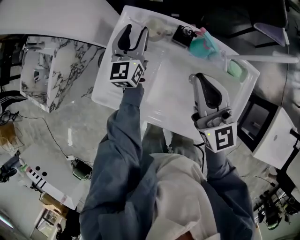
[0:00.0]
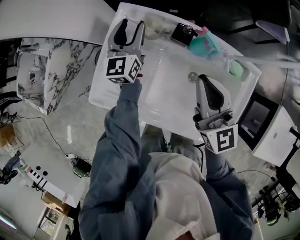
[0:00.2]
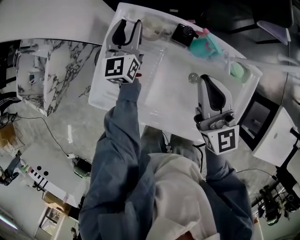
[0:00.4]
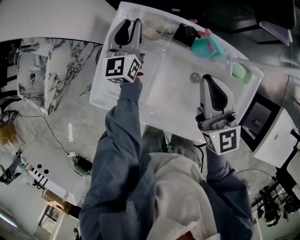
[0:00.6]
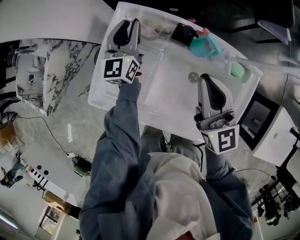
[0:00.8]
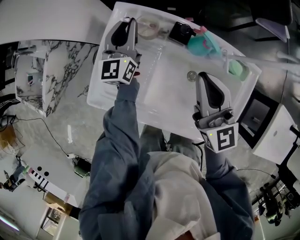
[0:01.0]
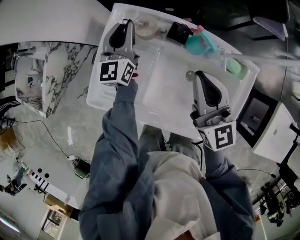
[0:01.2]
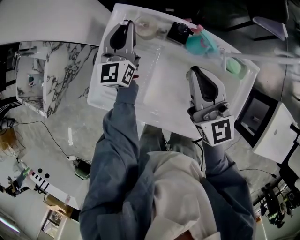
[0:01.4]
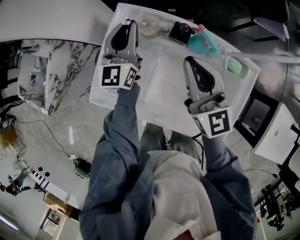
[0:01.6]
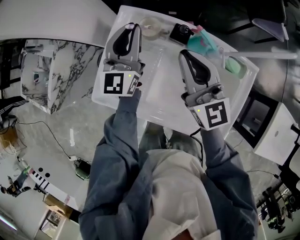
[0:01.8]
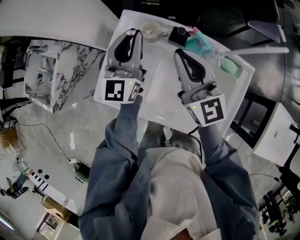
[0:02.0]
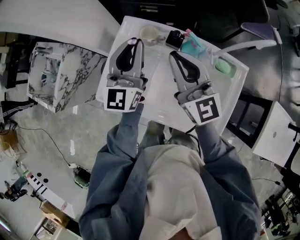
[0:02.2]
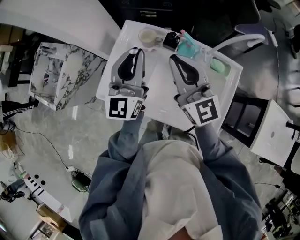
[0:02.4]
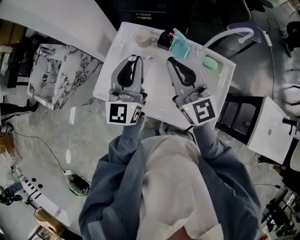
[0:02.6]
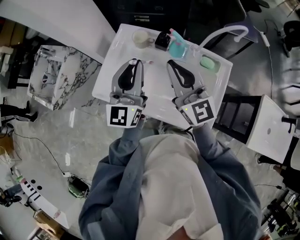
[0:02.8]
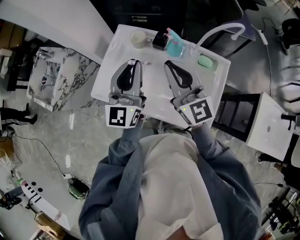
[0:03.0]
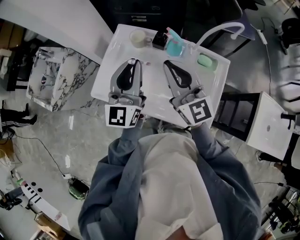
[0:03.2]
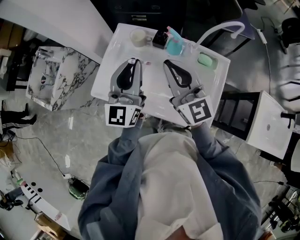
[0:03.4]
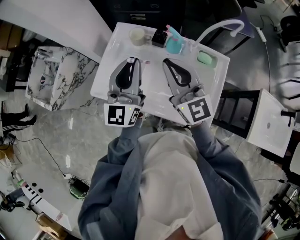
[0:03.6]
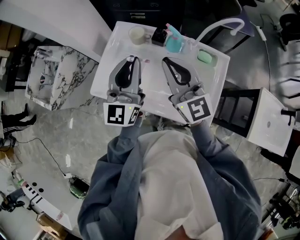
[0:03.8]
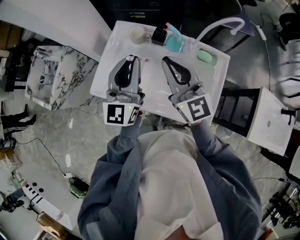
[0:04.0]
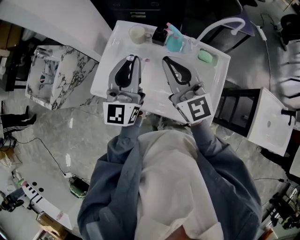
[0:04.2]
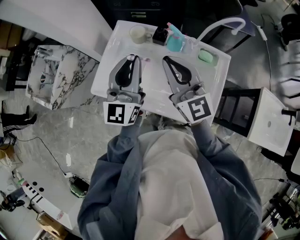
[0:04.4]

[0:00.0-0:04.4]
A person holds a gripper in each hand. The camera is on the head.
0:00.0 to 0:01.4: The left gripper closes its fingers.
0:01.4 to 0:03.0: The right gripper is displaced upward and backward by about 15 cm; the left gripper is displaced backward and upward by some 30 cm.
0:03.0 to 0:04.4: The two grippers keep their place.

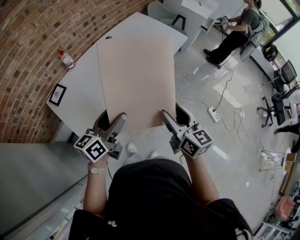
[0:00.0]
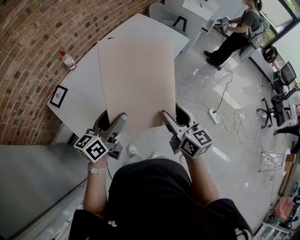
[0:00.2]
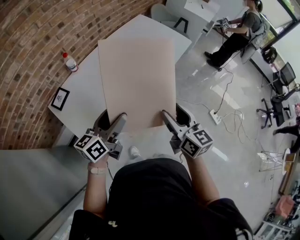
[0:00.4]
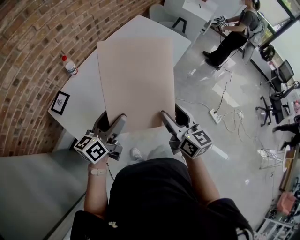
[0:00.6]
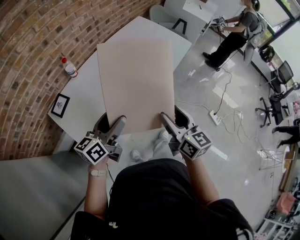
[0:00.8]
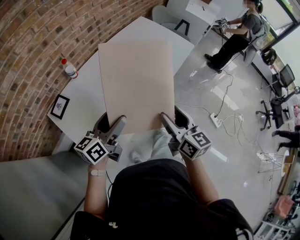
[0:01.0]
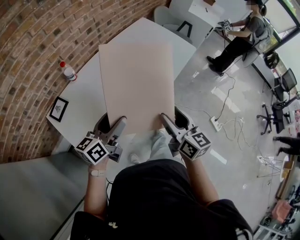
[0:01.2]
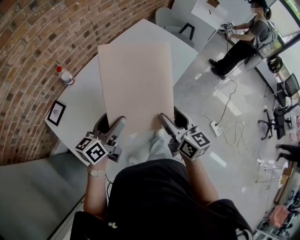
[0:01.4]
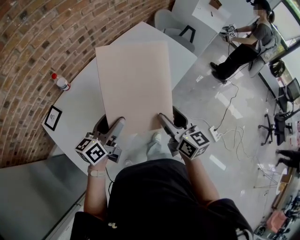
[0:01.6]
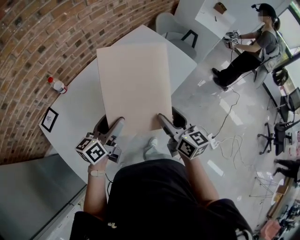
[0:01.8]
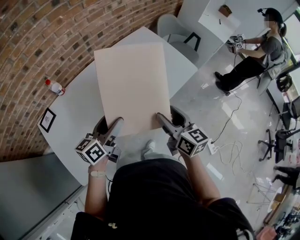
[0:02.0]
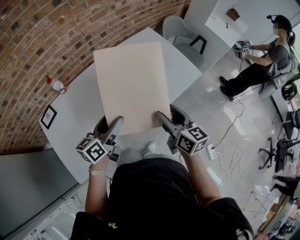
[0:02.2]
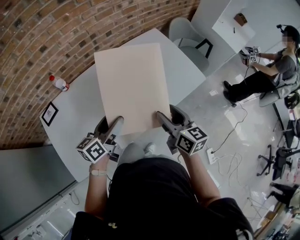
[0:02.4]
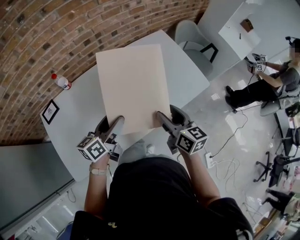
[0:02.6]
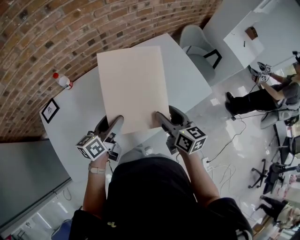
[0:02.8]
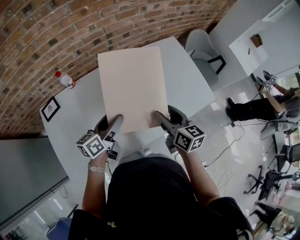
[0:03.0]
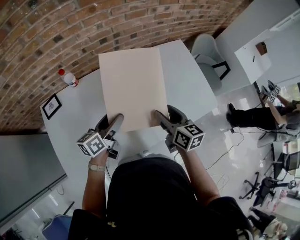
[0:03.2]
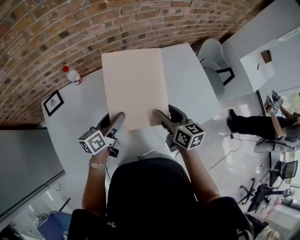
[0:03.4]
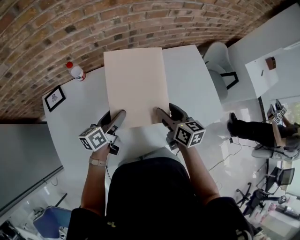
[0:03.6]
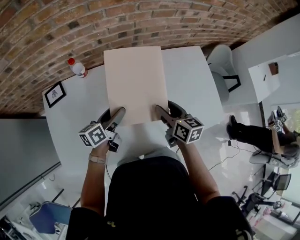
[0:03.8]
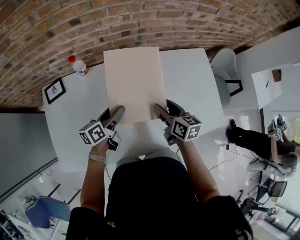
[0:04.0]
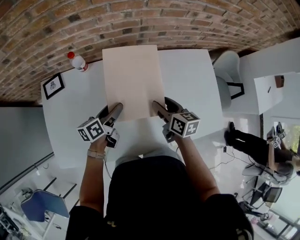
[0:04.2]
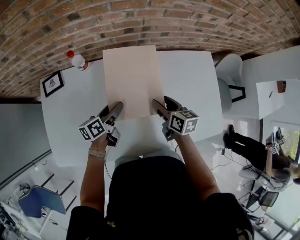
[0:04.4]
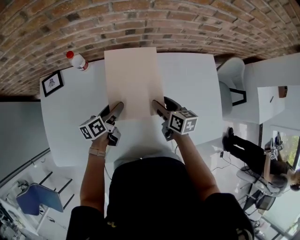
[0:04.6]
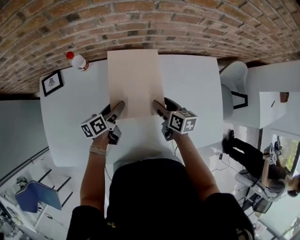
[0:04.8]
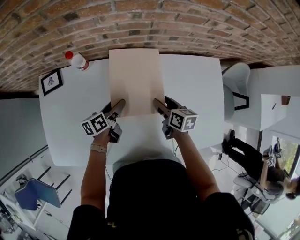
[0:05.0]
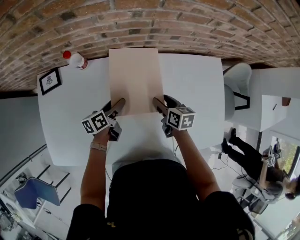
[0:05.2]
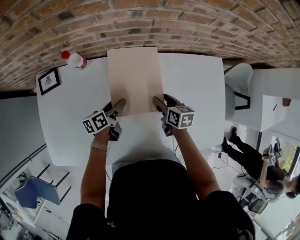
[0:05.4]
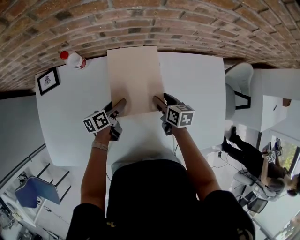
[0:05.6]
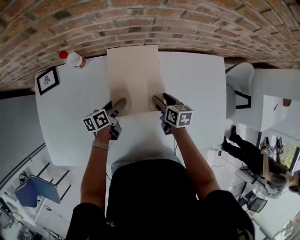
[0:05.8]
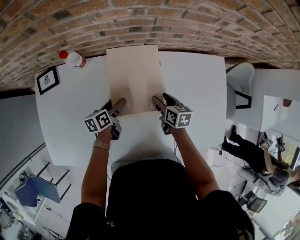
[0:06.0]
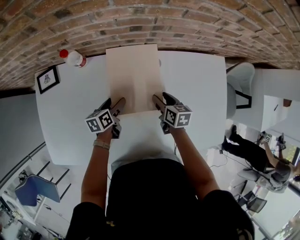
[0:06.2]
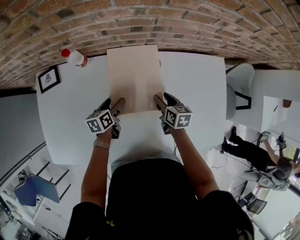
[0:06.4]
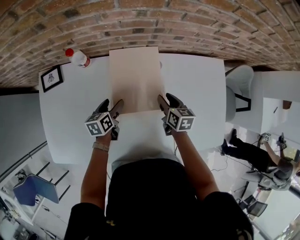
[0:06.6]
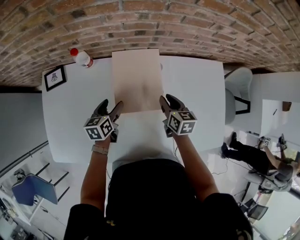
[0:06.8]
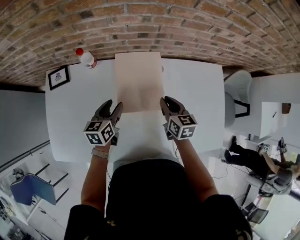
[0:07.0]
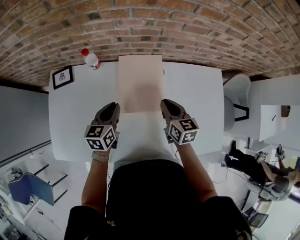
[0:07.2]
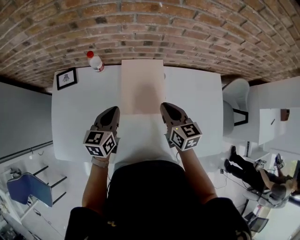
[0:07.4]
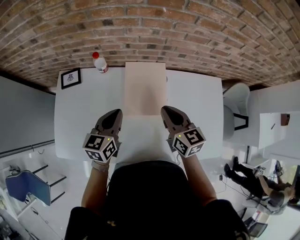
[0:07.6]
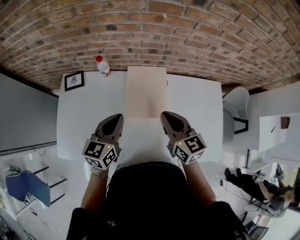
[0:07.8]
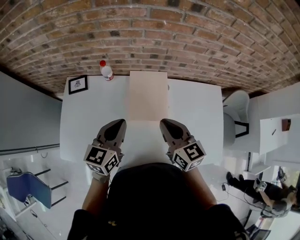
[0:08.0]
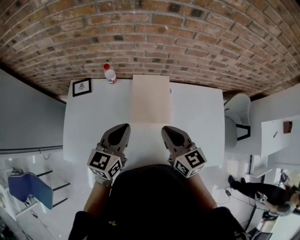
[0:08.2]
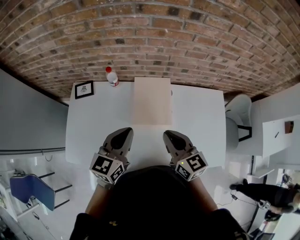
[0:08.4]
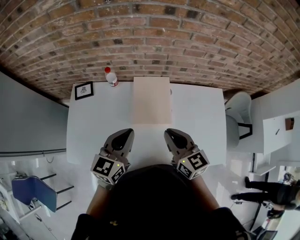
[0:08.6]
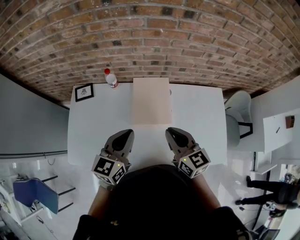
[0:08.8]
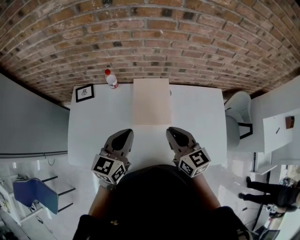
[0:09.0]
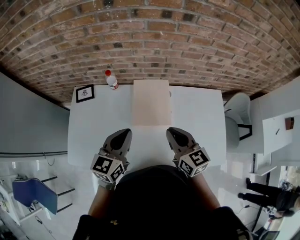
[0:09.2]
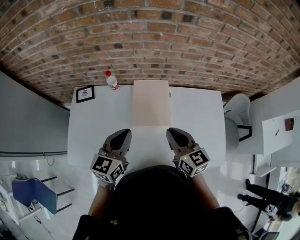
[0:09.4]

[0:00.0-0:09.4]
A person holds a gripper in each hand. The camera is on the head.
0:00.0 to 0:01.6: The two grippers go some 20 cm forward.
0:01.6 to 0:03.2: The left gripper changes place by some 20 cm, and changes its angle by approximately 30 degrees; the right gripper shifts by roughly 25 cm, and turns by some 30 degrees.
0:03.2 to 0:04.8: The left gripper goes roughly 20 cm downward and forward, and changes its angle by roughly 30 degrees. Meanwhile the right gripper is displaced forward and downward by approximately 20 cm, and rotates about 20 degrees.
0:04.8 to 0:06.2: Both grippers move downward, some 10 cm.
0:06.2 to 0:07.8: Both grippers travel together upward, about 30 cm. The left gripper rotates roughly 40 degrees, and closes its fingers. Meanwhile the right gripper turns by roughly 40 degrees, and closes up.
0:07.8 to 0:09.4: The left gripper travels upward and backward by roughly 10 cm. Meanwhile the right gripper is displaced backward by about 5 cm.

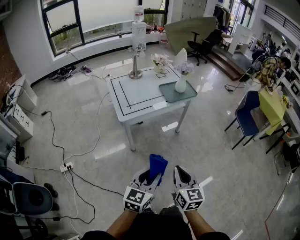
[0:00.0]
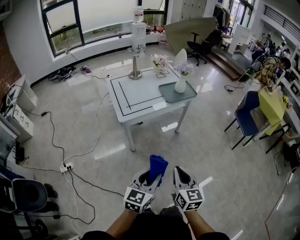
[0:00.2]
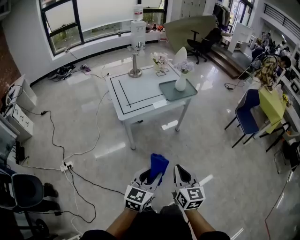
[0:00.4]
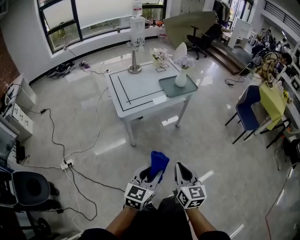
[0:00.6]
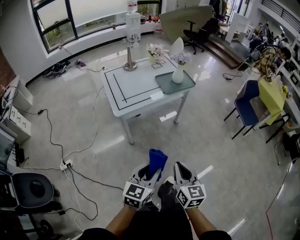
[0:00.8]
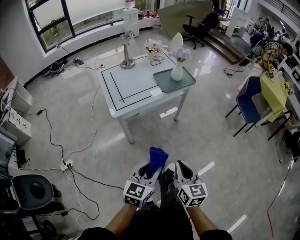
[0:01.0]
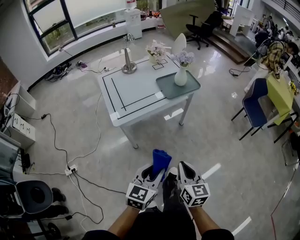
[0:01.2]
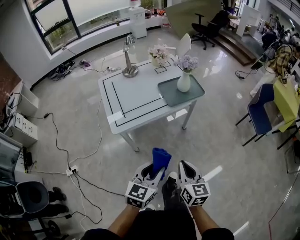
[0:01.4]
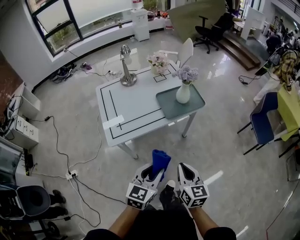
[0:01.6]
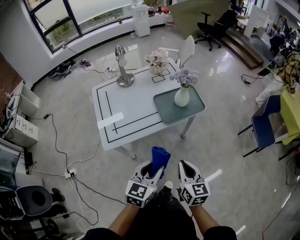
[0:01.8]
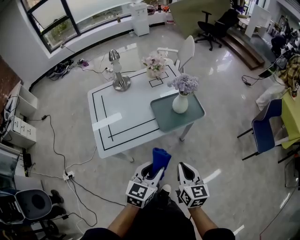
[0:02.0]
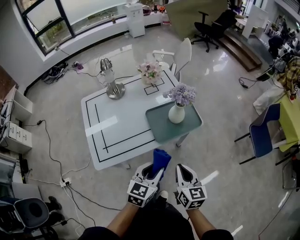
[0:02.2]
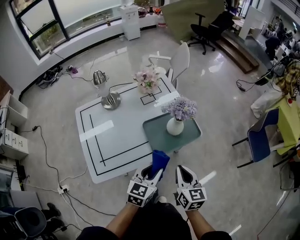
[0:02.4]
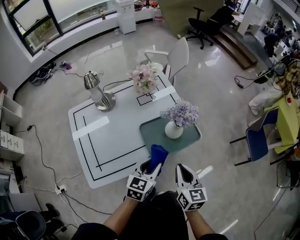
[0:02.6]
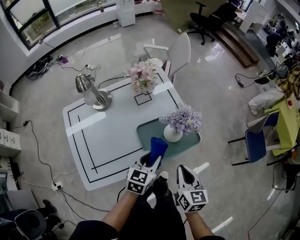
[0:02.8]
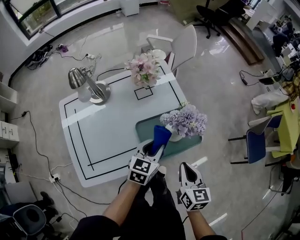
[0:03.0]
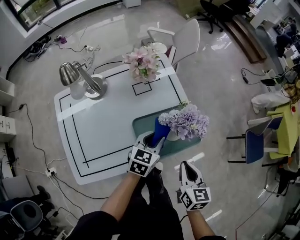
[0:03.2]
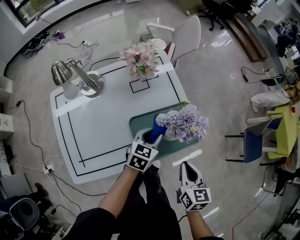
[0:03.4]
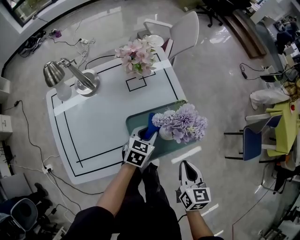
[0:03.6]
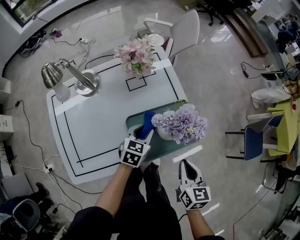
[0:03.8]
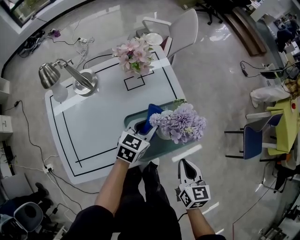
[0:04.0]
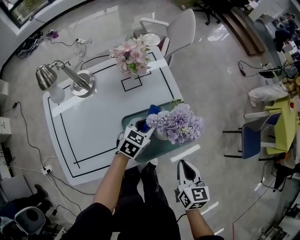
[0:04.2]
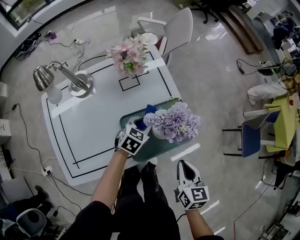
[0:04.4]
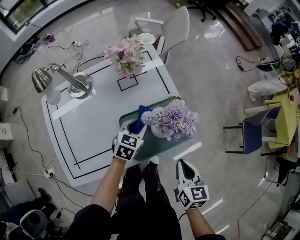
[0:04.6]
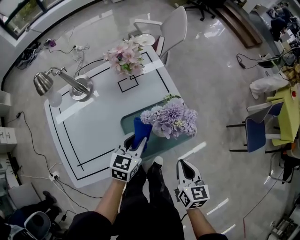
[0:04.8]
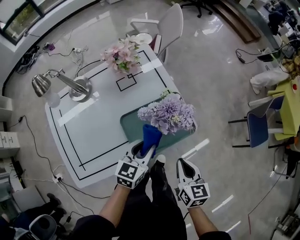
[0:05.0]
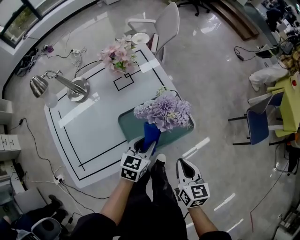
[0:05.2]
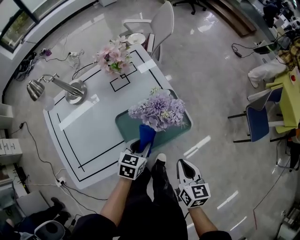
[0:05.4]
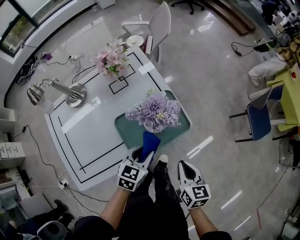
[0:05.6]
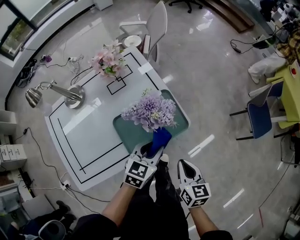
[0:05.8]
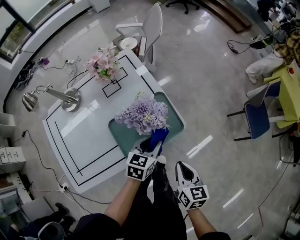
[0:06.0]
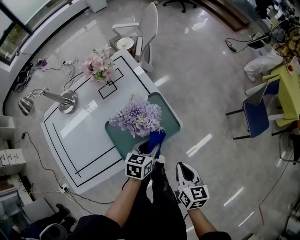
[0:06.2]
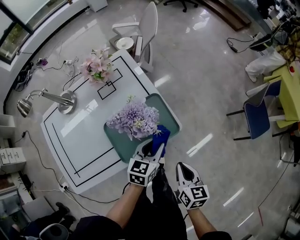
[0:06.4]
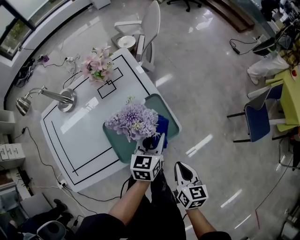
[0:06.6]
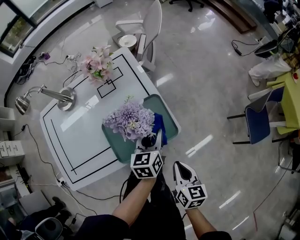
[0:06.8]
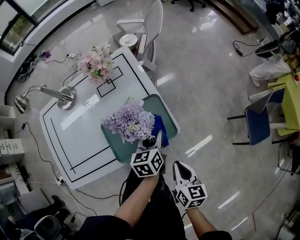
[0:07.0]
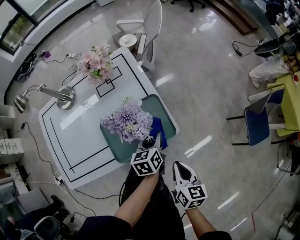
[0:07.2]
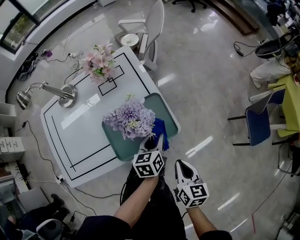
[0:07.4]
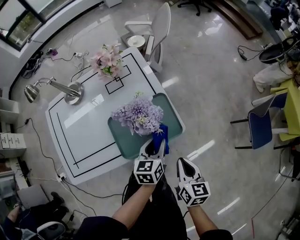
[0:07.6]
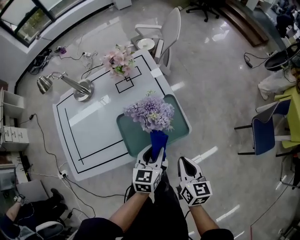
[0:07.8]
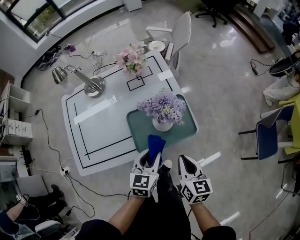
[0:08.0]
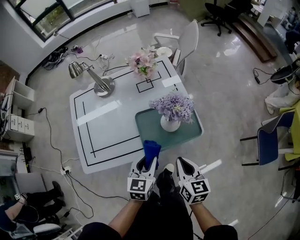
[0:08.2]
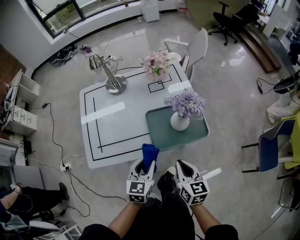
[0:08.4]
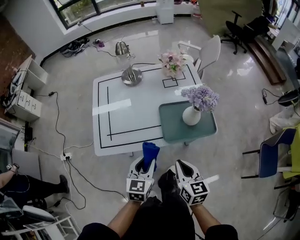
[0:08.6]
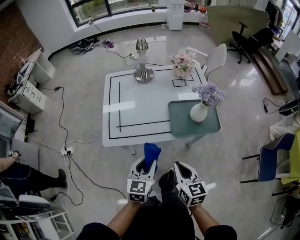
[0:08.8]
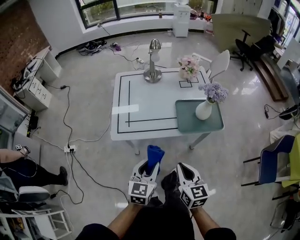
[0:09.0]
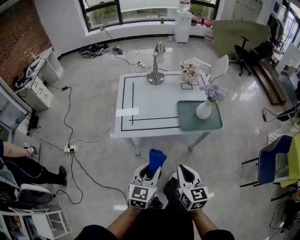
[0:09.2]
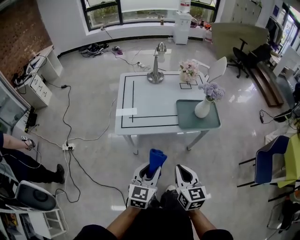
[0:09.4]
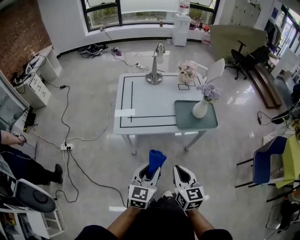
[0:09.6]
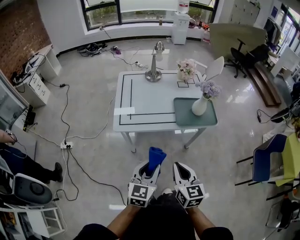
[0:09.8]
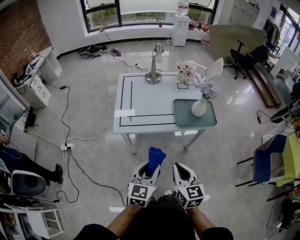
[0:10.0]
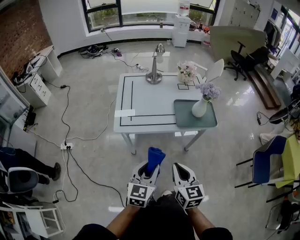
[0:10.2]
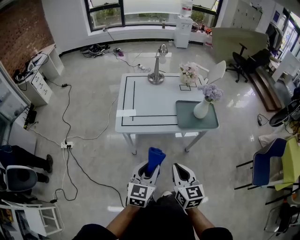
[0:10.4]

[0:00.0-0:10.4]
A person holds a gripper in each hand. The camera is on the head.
0:00.0 to 0:01.4: The two grippers go some 20 cm forward.
0:01.4 to 0:03.0: The two grippers travel together, forward, some 50 cm.
0:03.0 to 0:04.4: The left gripper goes up and down, about 10 cm each way, reversing 2 times, and swivels some 20 degrees; the right gripper shifts by some 5 cm.
0:04.4 to 0:06.0: The left gripper heads to the right, backward and upward, covering approximately 15 cm; the right gripper travels to the right by some 5 cm.
0:06.0 to 0:07.4: The left gripper changes place by roughly 5 cm, and turns by some 30 degrees; the right gripper moves some 5 cm.
0:07.4 to 0:09.0: The right gripper moves to the left and backward, some 35 cm, and changes its angle by about 30 degrees. Meanwhile the left gripper travels backward, to the left and upward by roughly 50 cm, and changes its angle by some 30 degrees.
0:09.0 to 0:10.4: The two grippers go roughly 10 cm backward.
